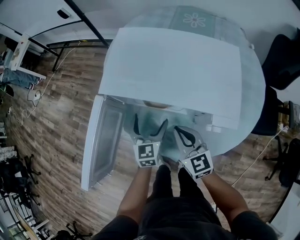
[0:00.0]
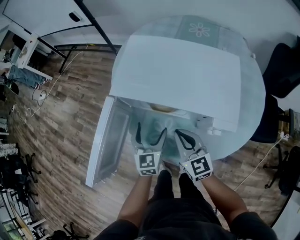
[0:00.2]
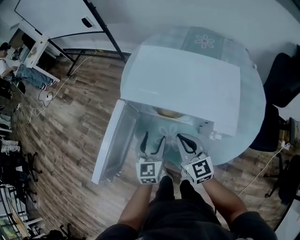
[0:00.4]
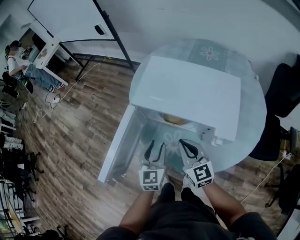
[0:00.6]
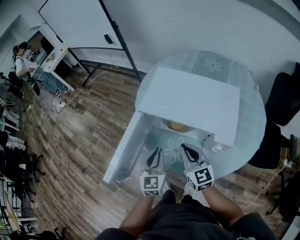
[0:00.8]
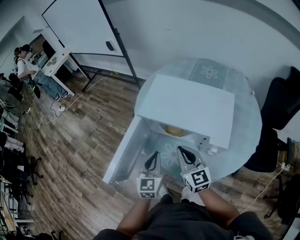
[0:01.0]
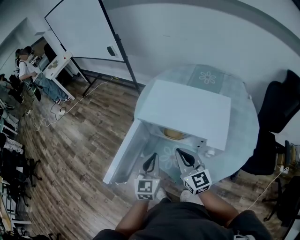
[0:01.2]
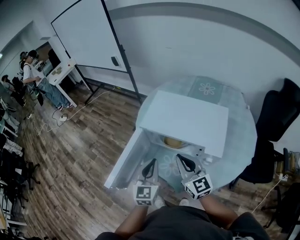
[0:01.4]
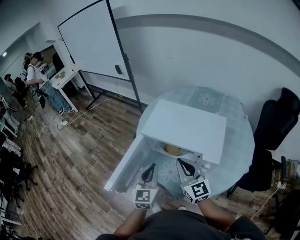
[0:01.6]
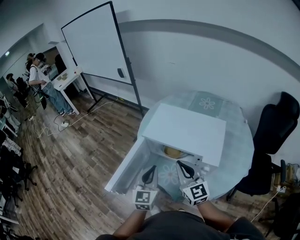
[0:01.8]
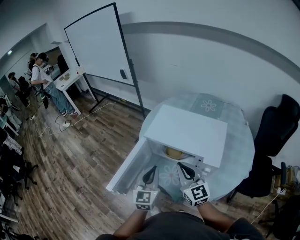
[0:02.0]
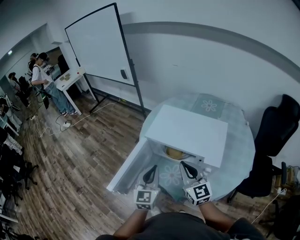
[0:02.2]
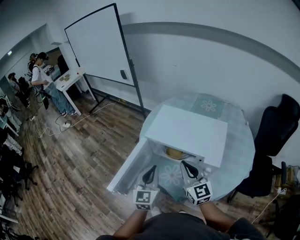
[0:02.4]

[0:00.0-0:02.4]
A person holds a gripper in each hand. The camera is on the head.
0:00.0 to 0:01.2: The left gripper heads upward and backward, covering roughly 20 cm, and closes up. Meanwhile the right gripper moves upward, about 15 cm.
0:01.2 to 0:02.4: The grippers both shift upward by some 5 cm.

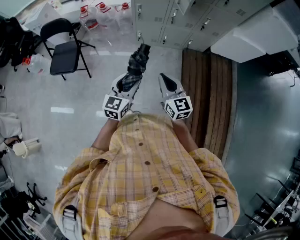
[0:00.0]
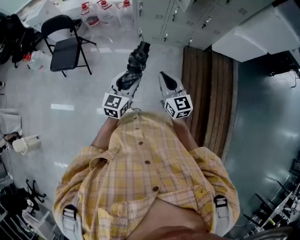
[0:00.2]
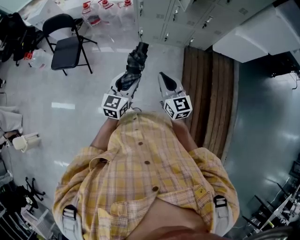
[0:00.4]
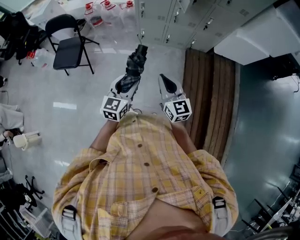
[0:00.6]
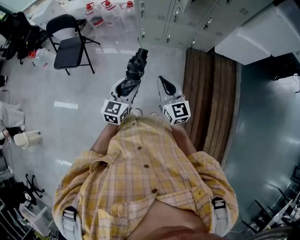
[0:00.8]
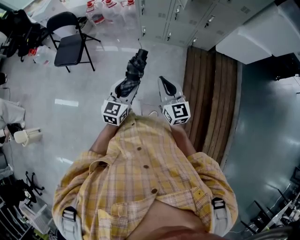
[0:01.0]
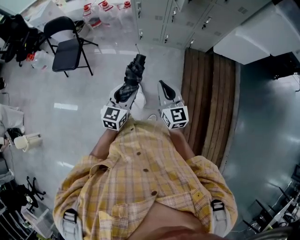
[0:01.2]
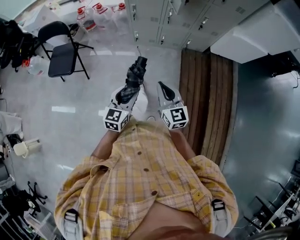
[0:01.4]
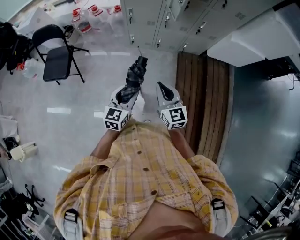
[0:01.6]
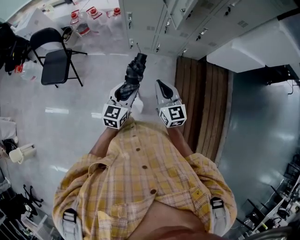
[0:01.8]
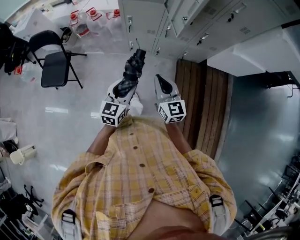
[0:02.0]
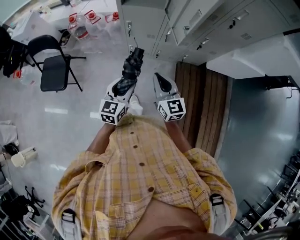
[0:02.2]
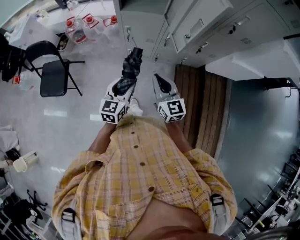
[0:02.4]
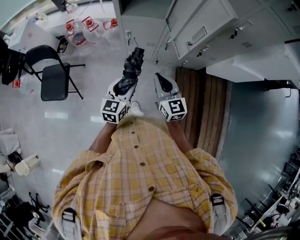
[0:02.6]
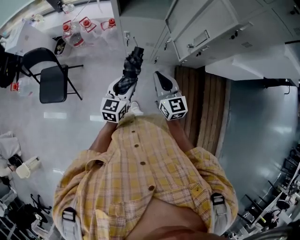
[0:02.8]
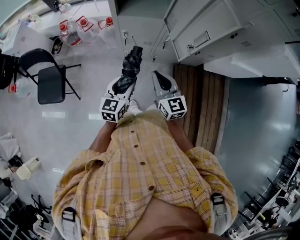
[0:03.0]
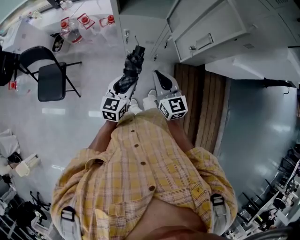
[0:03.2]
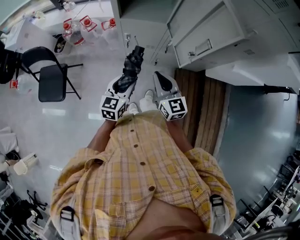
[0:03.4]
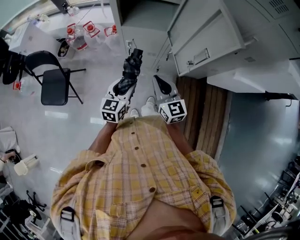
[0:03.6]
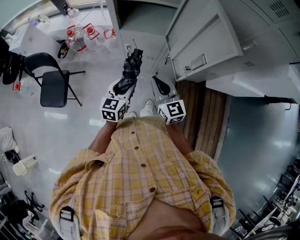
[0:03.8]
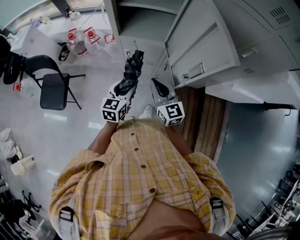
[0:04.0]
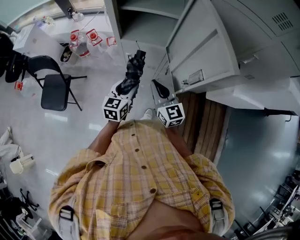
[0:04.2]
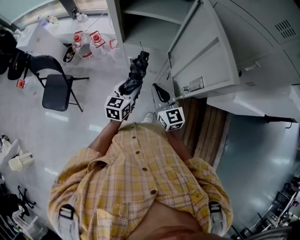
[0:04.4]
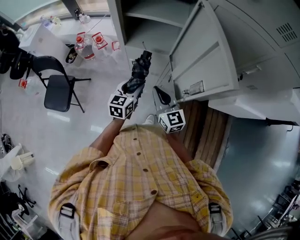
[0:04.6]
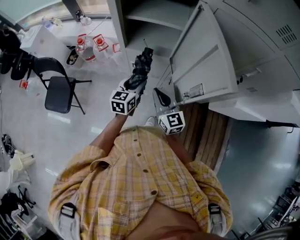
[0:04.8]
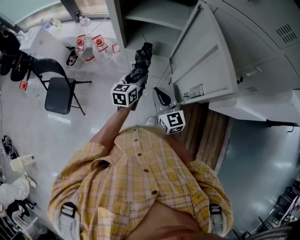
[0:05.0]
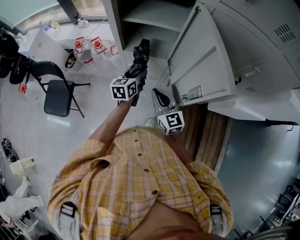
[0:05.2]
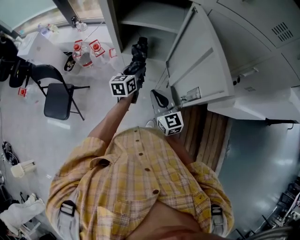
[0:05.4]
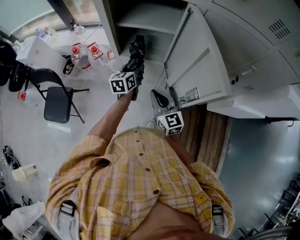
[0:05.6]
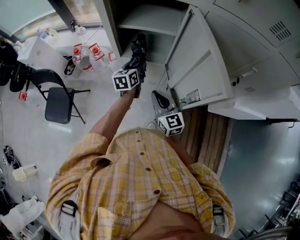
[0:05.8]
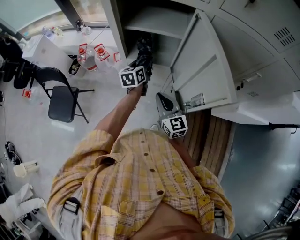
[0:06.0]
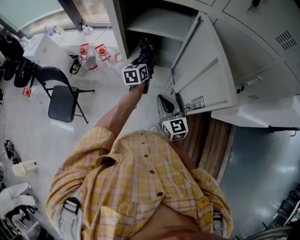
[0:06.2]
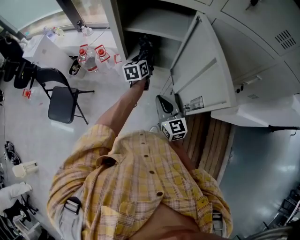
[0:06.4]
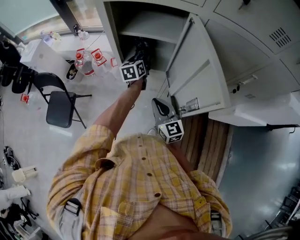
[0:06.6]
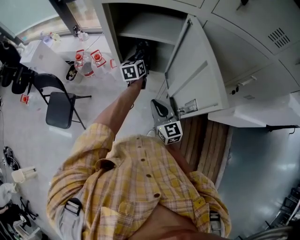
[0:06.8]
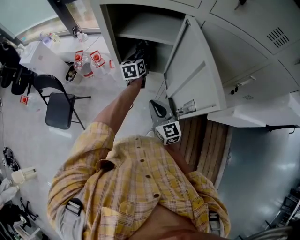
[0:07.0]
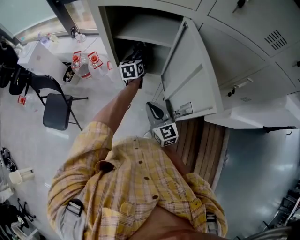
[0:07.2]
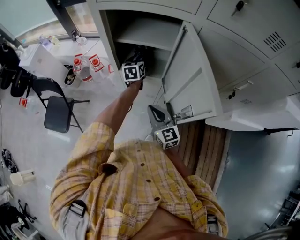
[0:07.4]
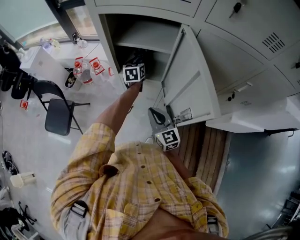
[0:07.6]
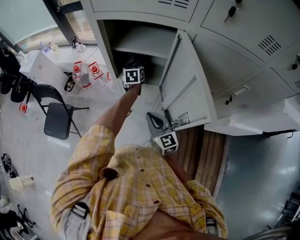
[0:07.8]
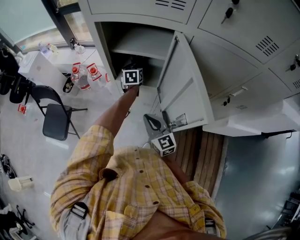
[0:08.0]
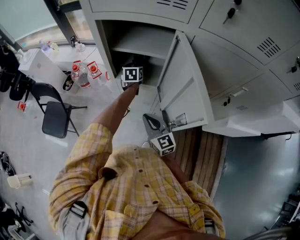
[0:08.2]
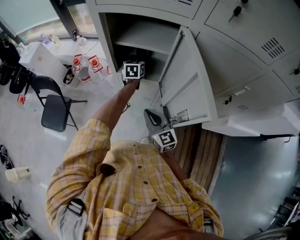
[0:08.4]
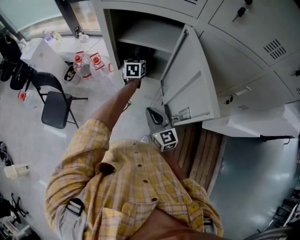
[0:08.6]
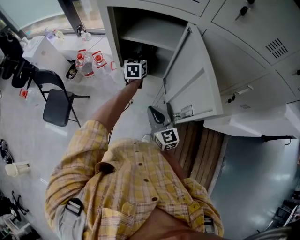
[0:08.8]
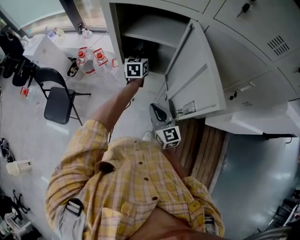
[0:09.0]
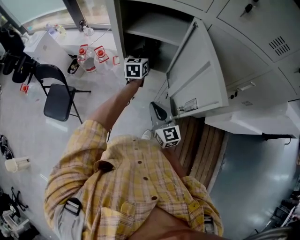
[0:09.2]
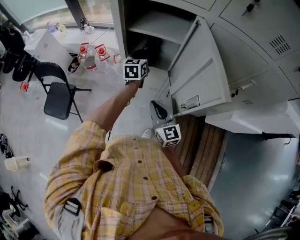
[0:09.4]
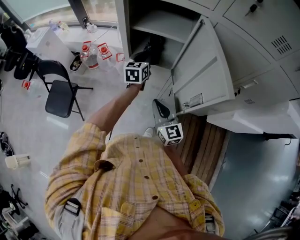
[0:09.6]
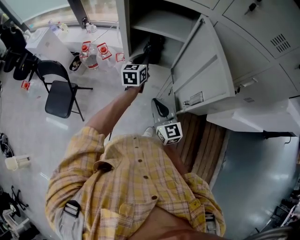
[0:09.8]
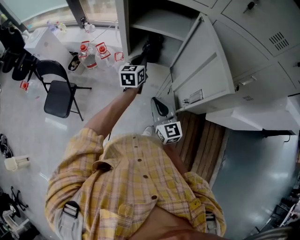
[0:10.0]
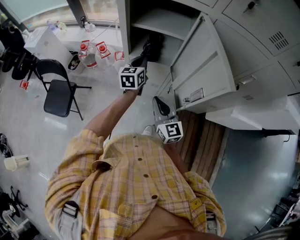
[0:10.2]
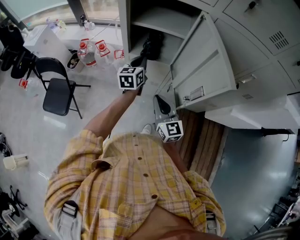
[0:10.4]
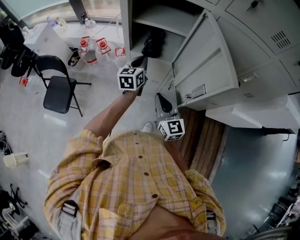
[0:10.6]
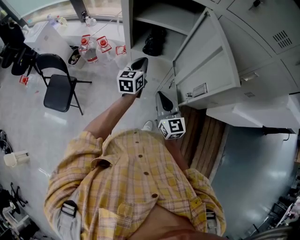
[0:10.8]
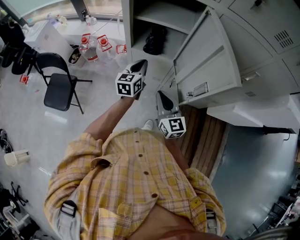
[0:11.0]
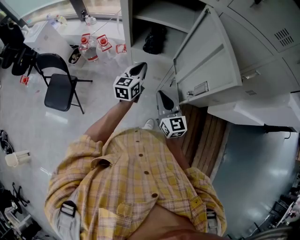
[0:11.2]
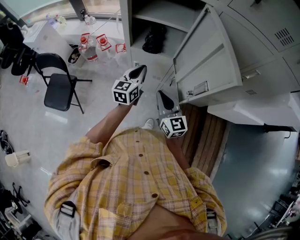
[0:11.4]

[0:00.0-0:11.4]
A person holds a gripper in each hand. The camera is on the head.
0:00.0 to 0:01.4: The left gripper shifts by roughly 5 cm, while the right gripper heads to the right, covering roughly 5 cm.
0:01.4 to 0:02.8: The grippers both shift forward by some 35 cm.
0:02.8 to 0:04.2: The two grippers go roughly 15 cm forward.
0:04.2 to 0:05.6: The left gripper goes some 20 cm forward.
0:05.6 to 0:07.2: The left gripper travels forward by roughly 10 cm.
0:07.2 to 0:08.6: The left gripper opens.
0:08.6 to 0:10.0: The right gripper changes place by approximately 5 cm; the left gripper is displaced backward by about 10 cm, and closes its fingers.
0:10.0 to 0:11.4: The left gripper shifts about 10 cm backward.

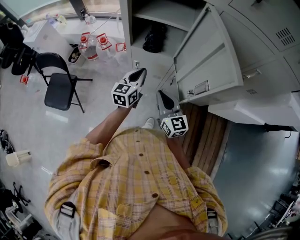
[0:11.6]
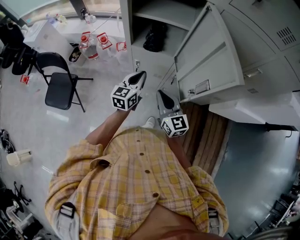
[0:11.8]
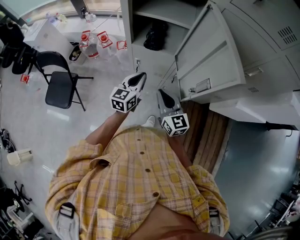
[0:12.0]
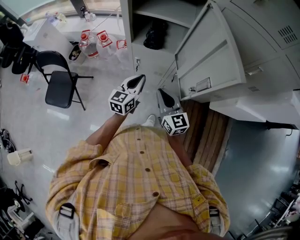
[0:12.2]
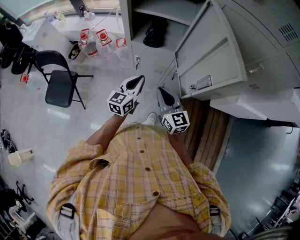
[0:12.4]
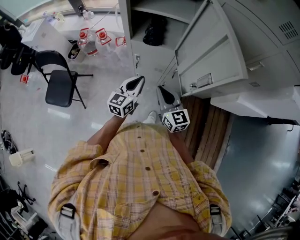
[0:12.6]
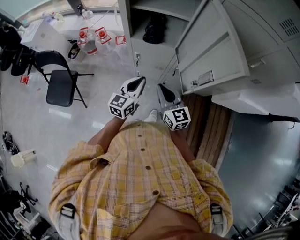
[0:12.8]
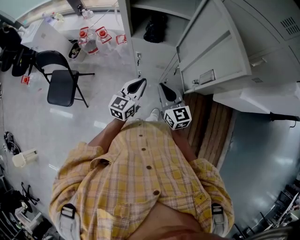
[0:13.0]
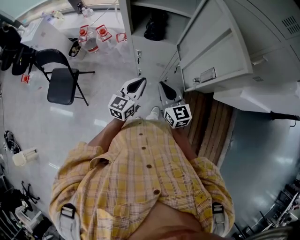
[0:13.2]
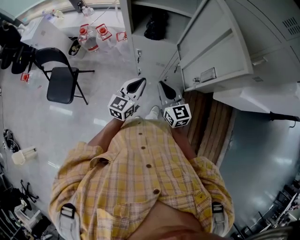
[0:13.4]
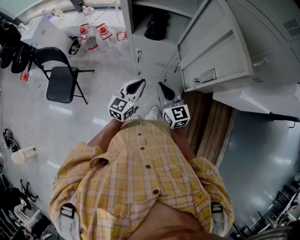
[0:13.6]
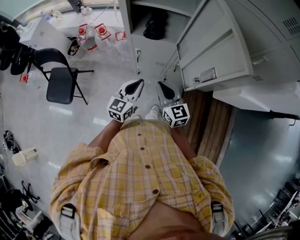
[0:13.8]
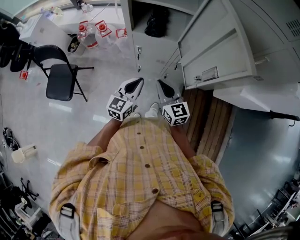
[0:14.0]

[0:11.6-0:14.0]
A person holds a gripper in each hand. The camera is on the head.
0:11.6 to 0:12.8: The left gripper shifts about 10 cm backward.
0:12.8 to 0:14.0: There are only small adjustments of the grippers.

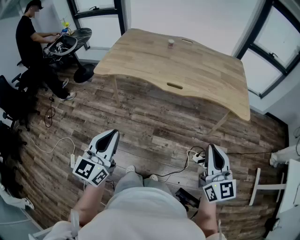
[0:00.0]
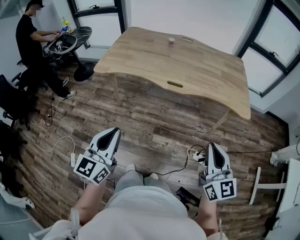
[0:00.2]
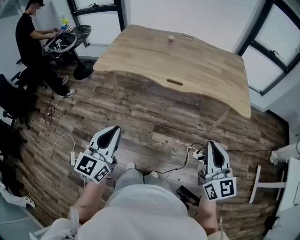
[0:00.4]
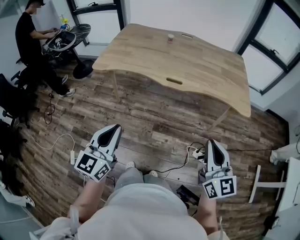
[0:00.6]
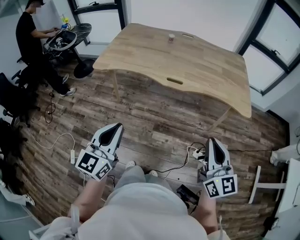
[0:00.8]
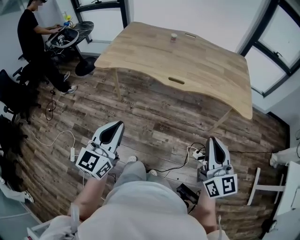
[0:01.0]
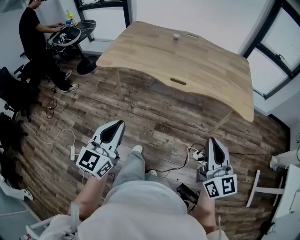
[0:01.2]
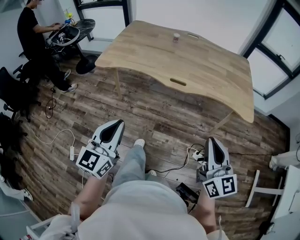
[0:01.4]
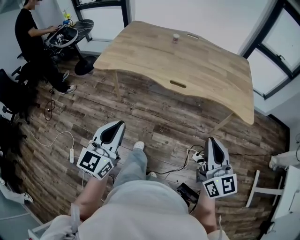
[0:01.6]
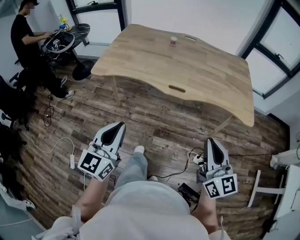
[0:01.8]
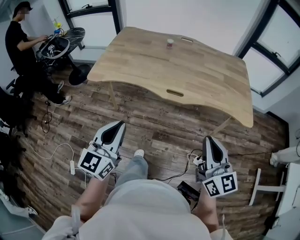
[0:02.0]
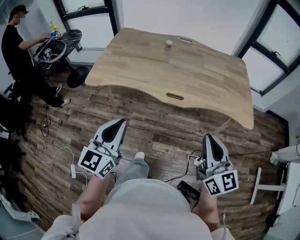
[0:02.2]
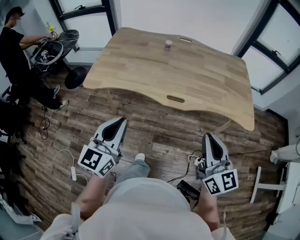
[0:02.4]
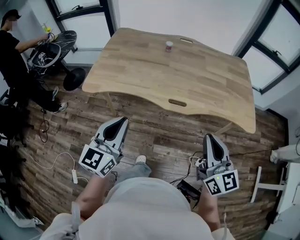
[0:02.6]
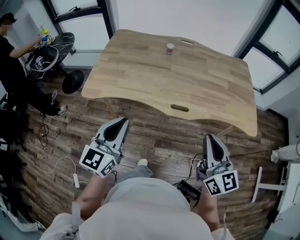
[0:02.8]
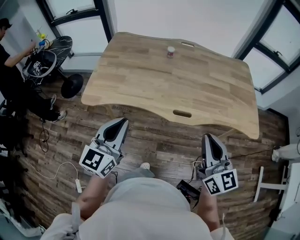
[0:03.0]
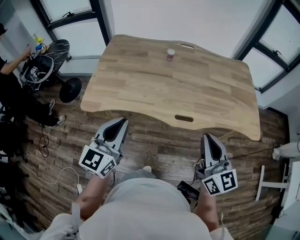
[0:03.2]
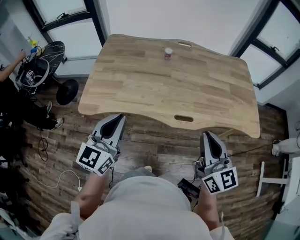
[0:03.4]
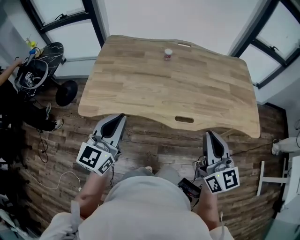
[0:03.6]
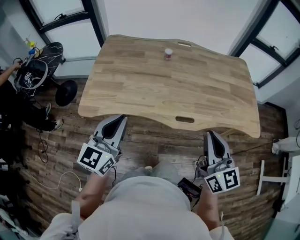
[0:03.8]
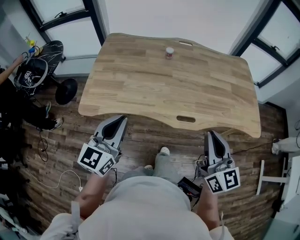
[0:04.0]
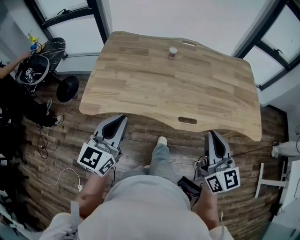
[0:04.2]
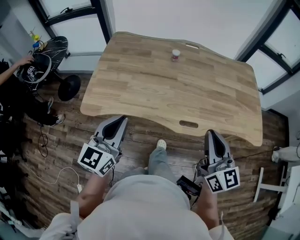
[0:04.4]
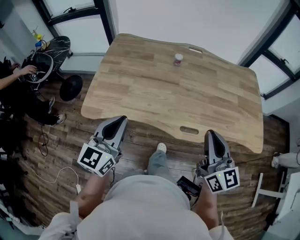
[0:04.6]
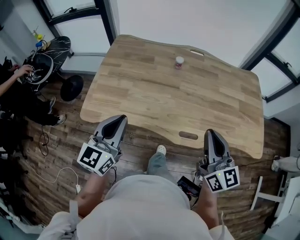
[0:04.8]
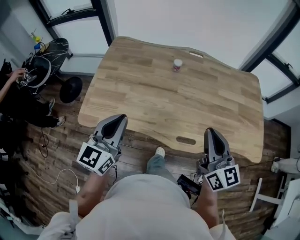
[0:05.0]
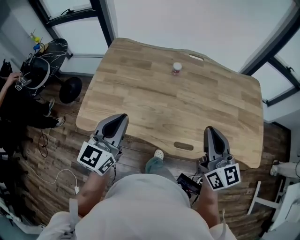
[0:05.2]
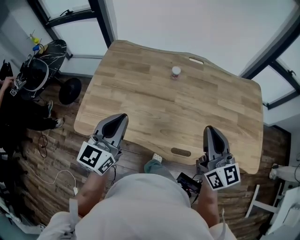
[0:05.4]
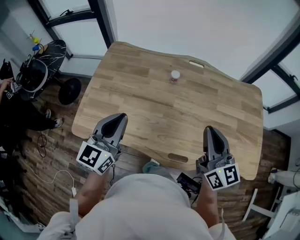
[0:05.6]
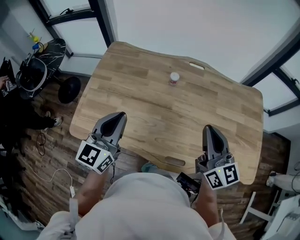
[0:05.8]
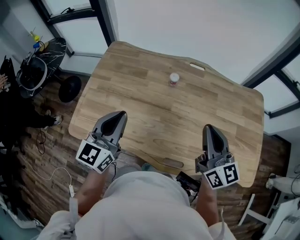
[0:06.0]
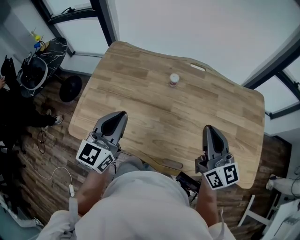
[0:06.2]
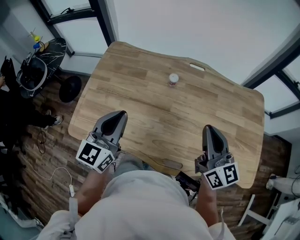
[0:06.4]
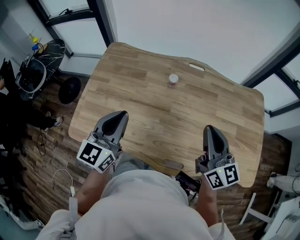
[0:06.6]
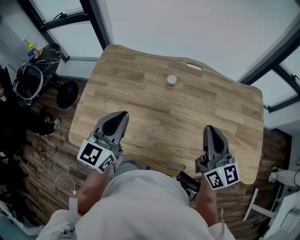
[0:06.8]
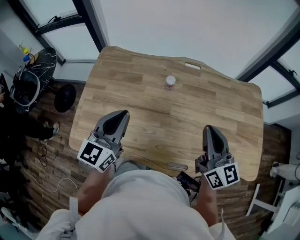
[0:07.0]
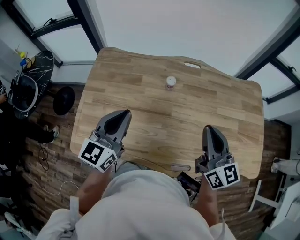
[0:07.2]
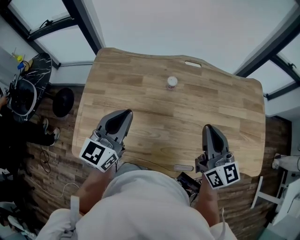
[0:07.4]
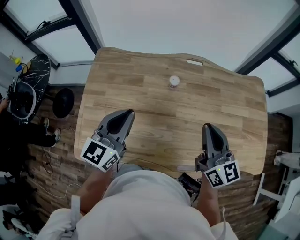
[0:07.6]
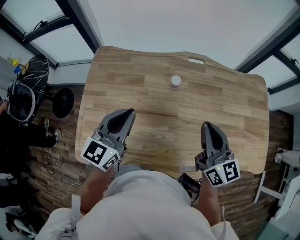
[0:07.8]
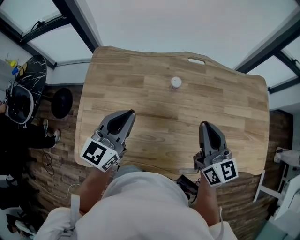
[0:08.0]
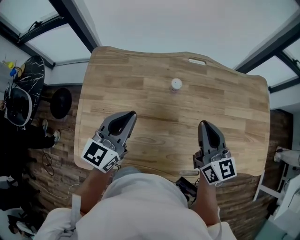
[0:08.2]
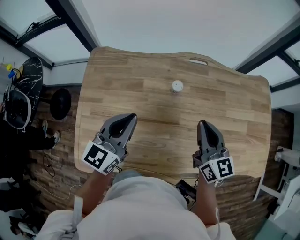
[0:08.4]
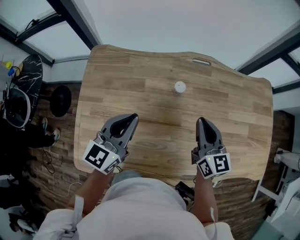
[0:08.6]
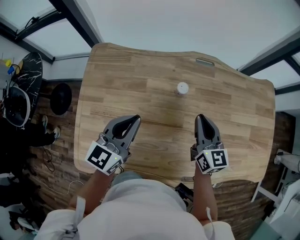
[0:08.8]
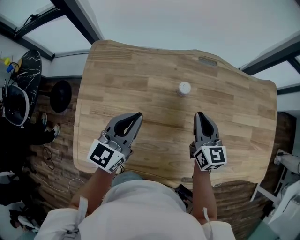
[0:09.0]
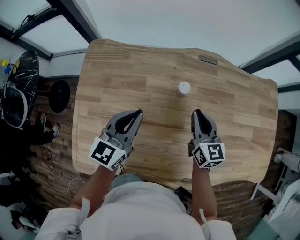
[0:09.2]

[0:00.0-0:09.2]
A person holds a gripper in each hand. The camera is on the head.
0:00.0 to 0:01.6: The grippers both shift forward by about 5 cm.
0:01.6 to 0:03.0: The right gripper moves forward and to the left, some 25 cm. Meanwhile the left gripper moves forward, roughly 30 cm.
0:03.0 to 0:04.6: The two grippers go approximately 15 cm forward and to the left.
0:04.6 to 0:06.2: Both grippers travel together forward, roughly 20 cm.
0:06.2 to 0:07.6: The left gripper travels forward by some 10 cm, while the right gripper heads to the left and forward, covering about 10 cm.
0:07.6 to 0:09.2: The right gripper is displaced downward and forward by about 25 cm. The left gripper is displaced forward and downward by about 15 cm.
